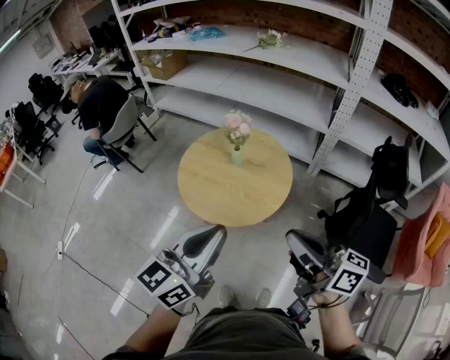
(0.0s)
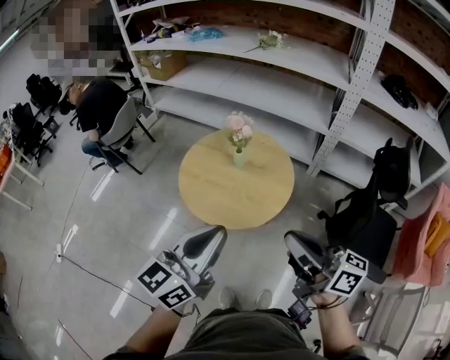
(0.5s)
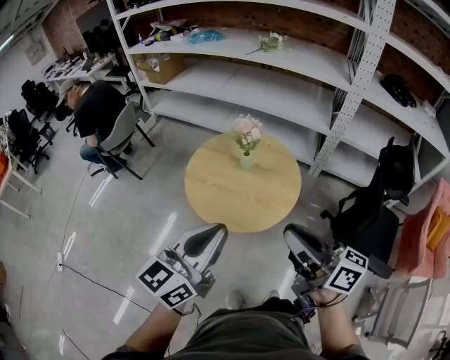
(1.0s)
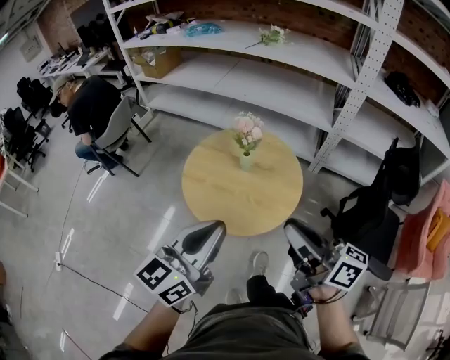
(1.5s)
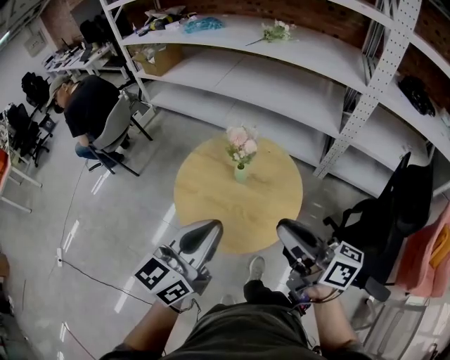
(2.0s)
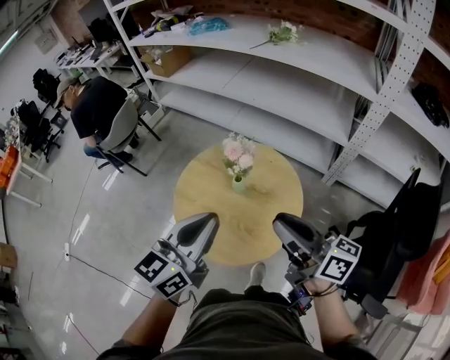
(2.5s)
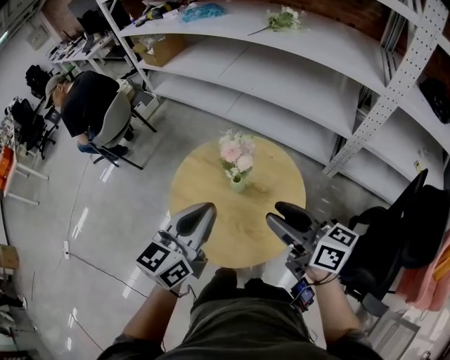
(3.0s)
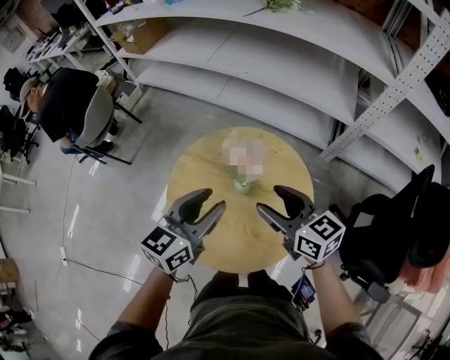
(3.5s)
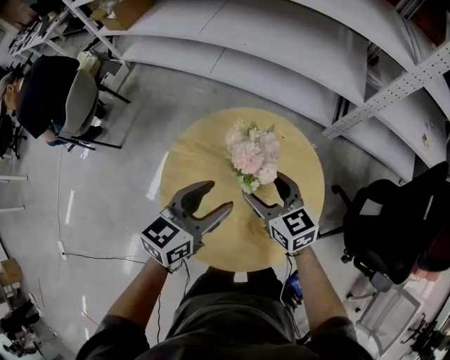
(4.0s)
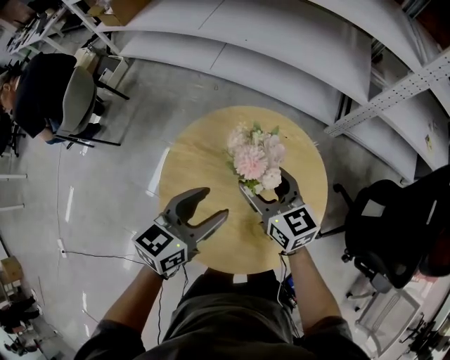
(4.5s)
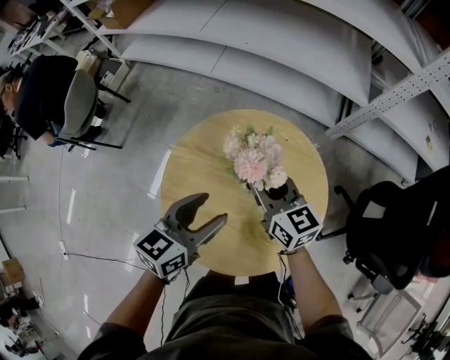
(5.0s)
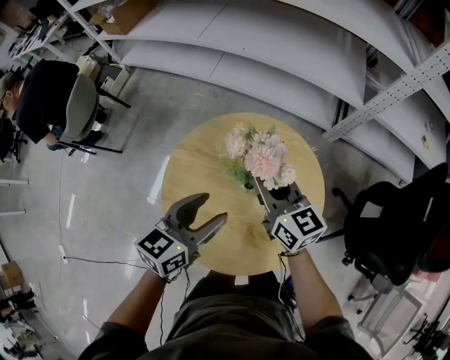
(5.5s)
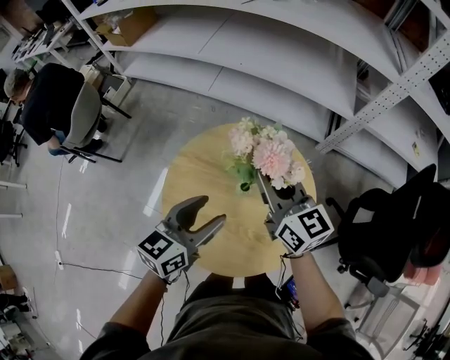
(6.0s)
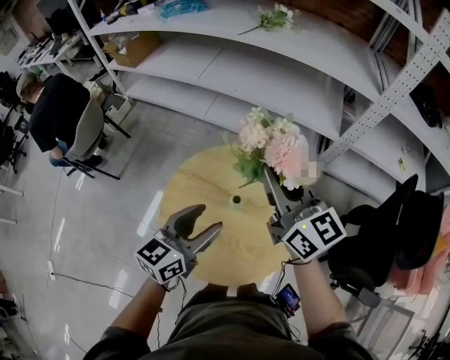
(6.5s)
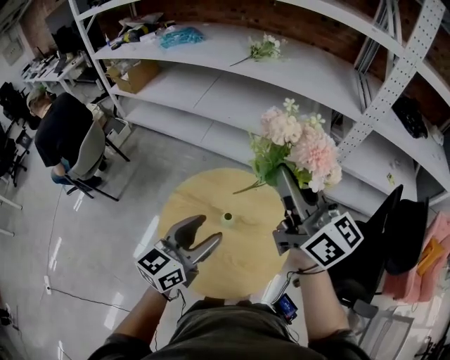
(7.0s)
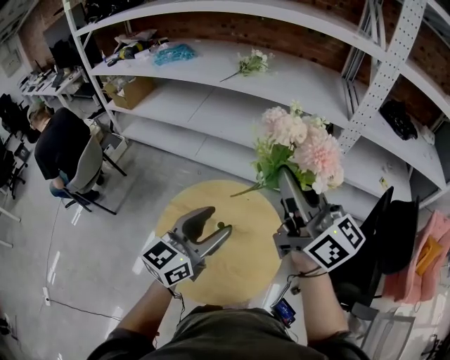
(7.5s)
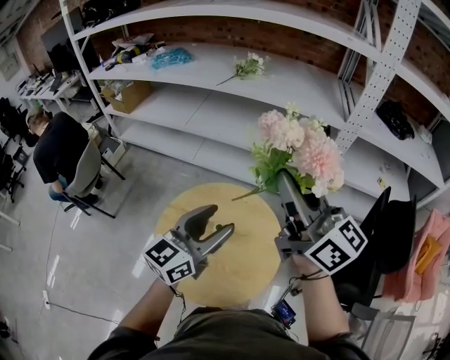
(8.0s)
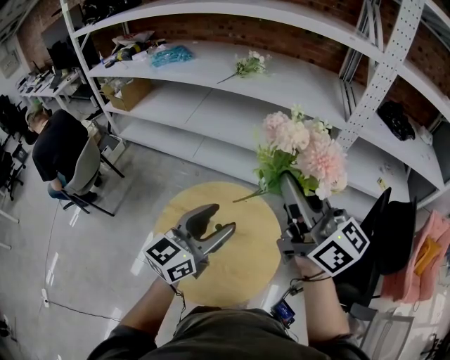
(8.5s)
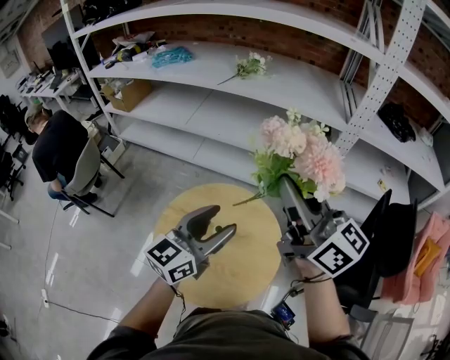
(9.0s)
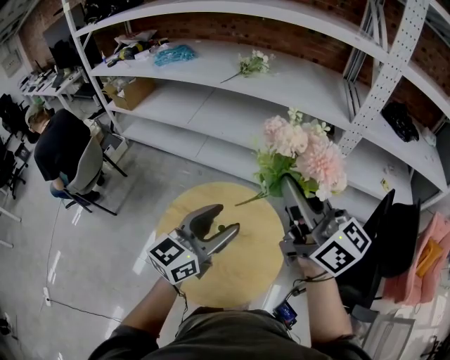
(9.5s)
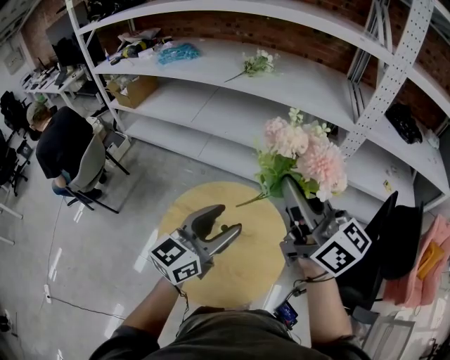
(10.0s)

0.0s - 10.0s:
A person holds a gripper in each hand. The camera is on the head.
0.0s - 2.0s: Both grippers move forward, some 15 cm.
2.0s - 4.0s: Both grippers travel together forward and downward, roughly 35 cm. The right gripper tips its fingers downward by about 30 degrees, and opens up; the left gripper rotates some 30 degrees, and opens its fingers.
4.0s - 6.0s: The right gripper is displaced upward by approximately 15 cm, turns by roughly 20 degrees, and closes its fingers.
6.0s - 8.0s: The right gripper travels upward by some 30 cm, and rotates some 20 degrees. The left gripper travels upward and to the right by about 20 cm, and swivels some 20 degrees.
8.0s - 10.0s: The grippers make only small movements.
